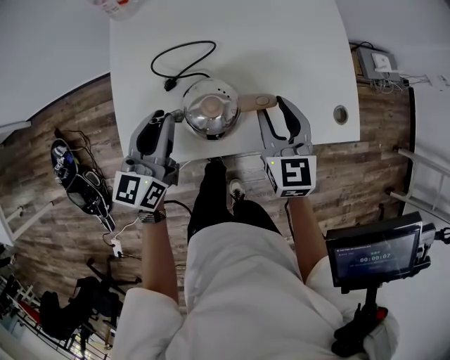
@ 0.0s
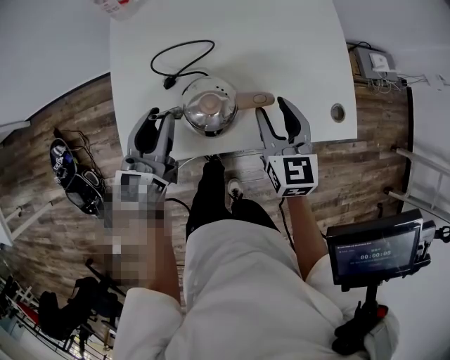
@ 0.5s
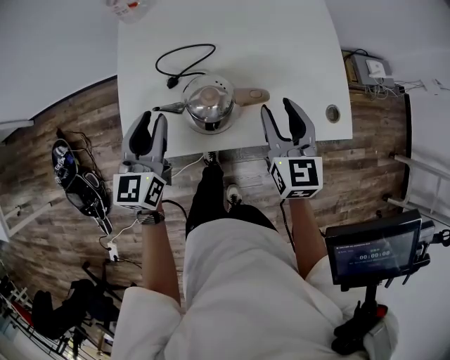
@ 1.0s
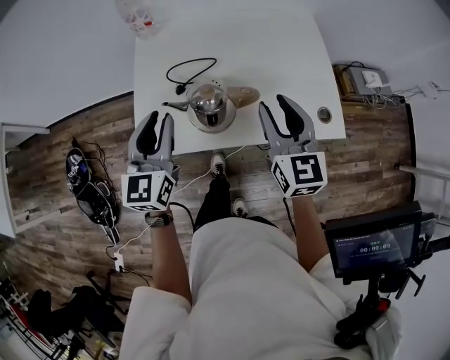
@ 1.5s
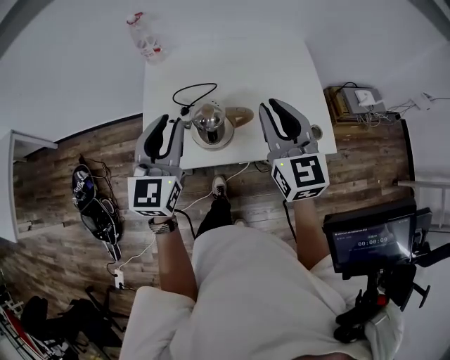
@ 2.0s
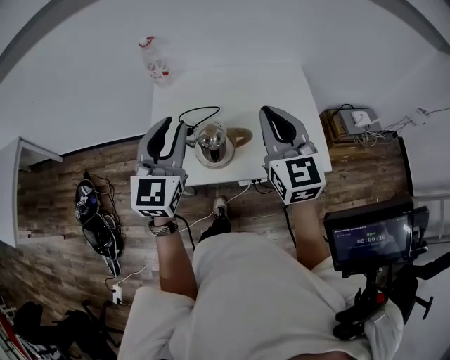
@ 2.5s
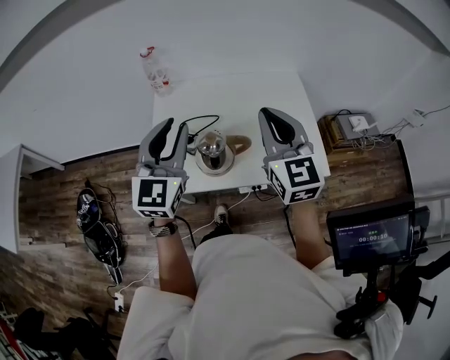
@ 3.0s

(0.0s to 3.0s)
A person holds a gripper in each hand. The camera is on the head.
0.0s - 1.5s: The grippers both shift upward by roughly 10 cm. The left gripper rotates approximately 20 degrees.
1.5s - 3.0s: The grippers both shift upward by some 15 cm. The right gripper closes its fingers.

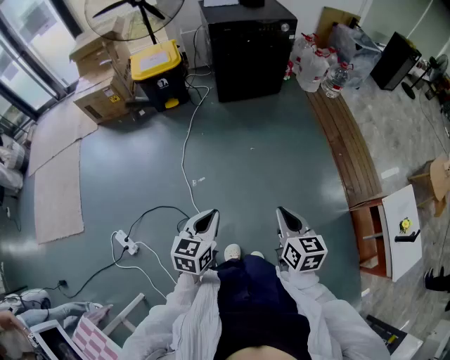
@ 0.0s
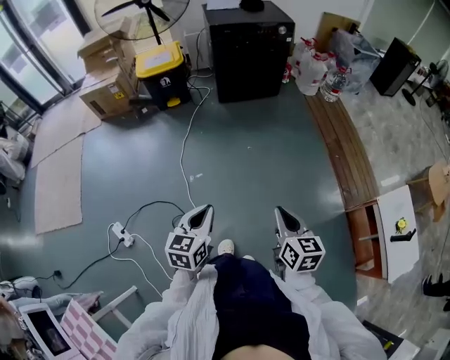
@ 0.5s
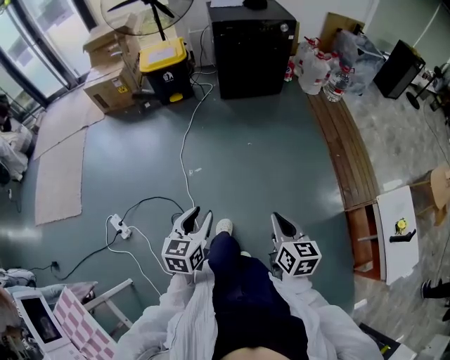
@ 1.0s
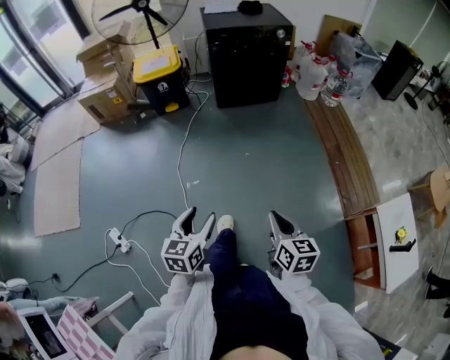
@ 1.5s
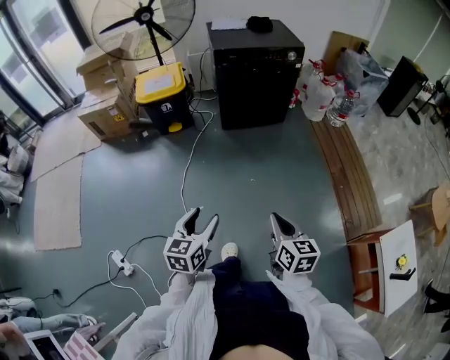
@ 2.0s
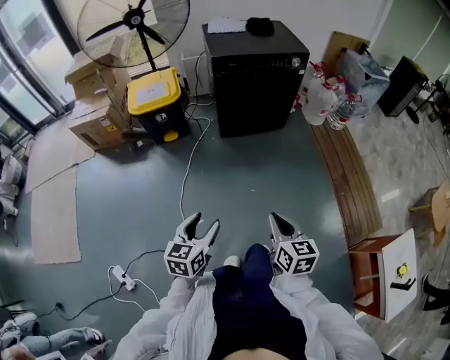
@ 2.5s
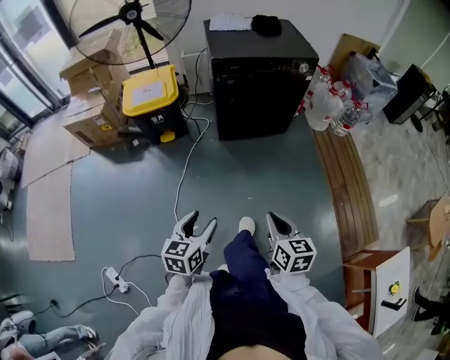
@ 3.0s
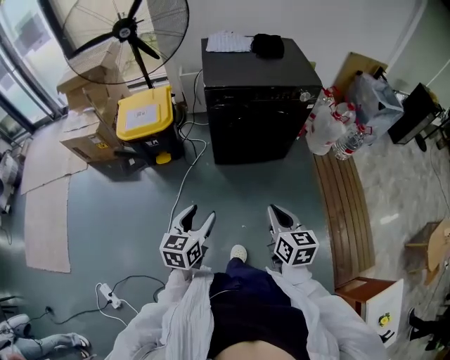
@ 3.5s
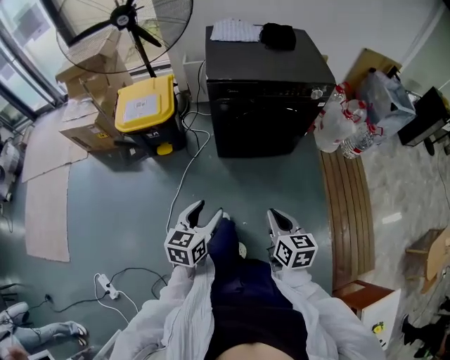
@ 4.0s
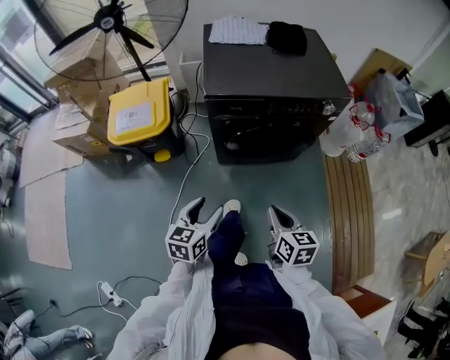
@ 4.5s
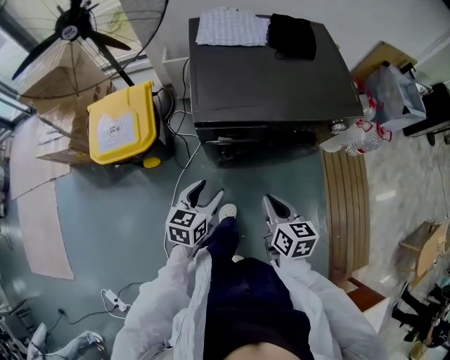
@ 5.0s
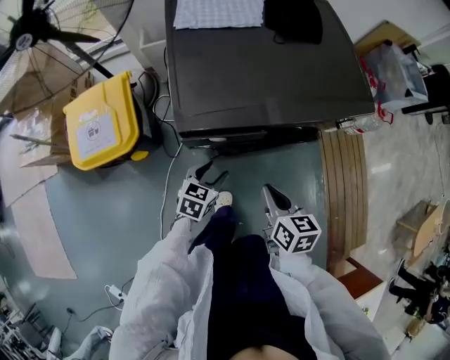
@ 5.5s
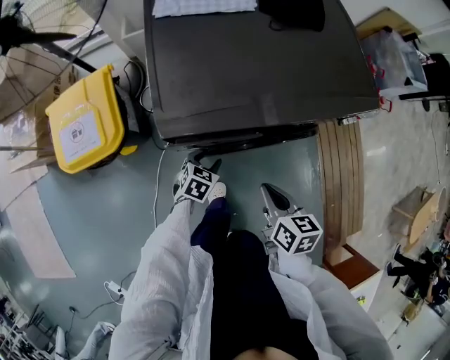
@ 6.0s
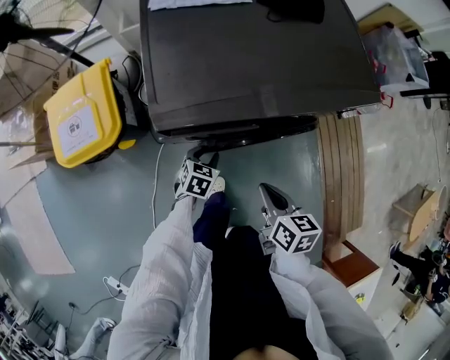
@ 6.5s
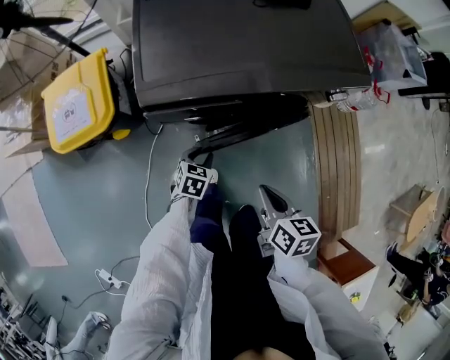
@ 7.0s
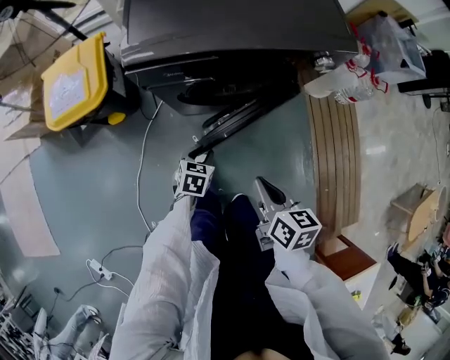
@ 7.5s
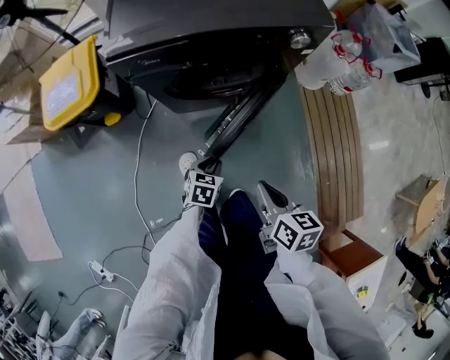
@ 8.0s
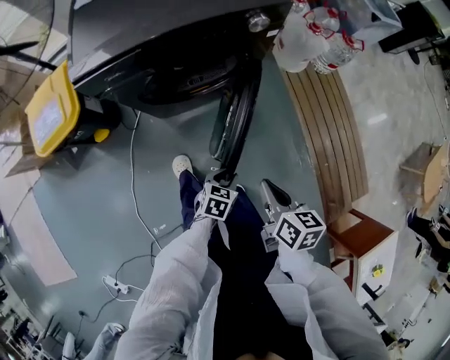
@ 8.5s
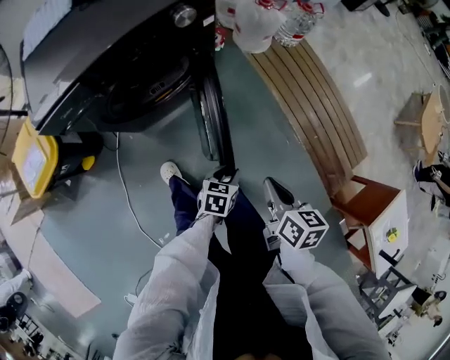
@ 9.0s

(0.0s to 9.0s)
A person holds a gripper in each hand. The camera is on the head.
0.0s - 2.0s: Both grippers move forward, approximately 15 cm. The left gripper opens its fingers.
2.0s - 4.5s: Both grippers are carried forward, some 60 cm.
4.5s - 7.0s: The right gripper heads forward and downward, covering roughly 15 cm, while the left gripper moves forward and downward, approximately 35 cm, rotates some 30 degrees, and closes its fingers.
7.0s - 9.0s: The left gripper moves some 40 cm, and changes its angle by approximately 20 degrees. Meanwhile the right gripper moves roughly 35 cm, and rotates some 30 degrees.

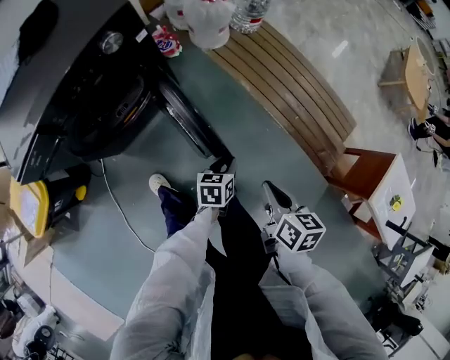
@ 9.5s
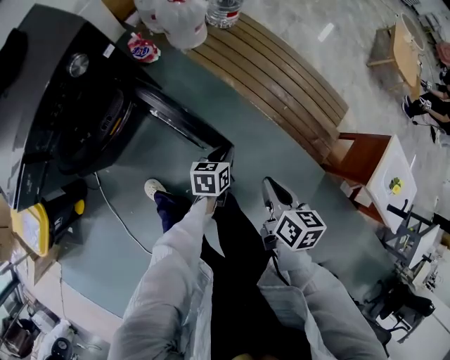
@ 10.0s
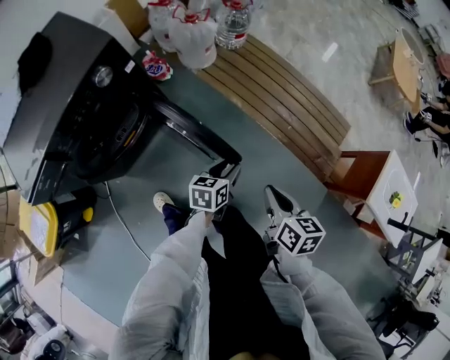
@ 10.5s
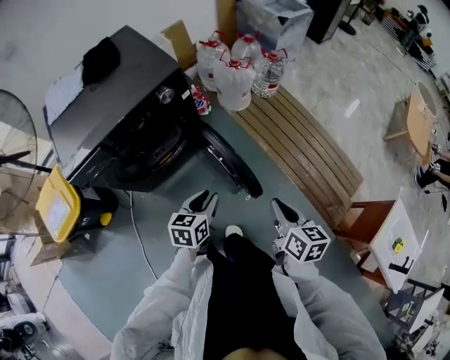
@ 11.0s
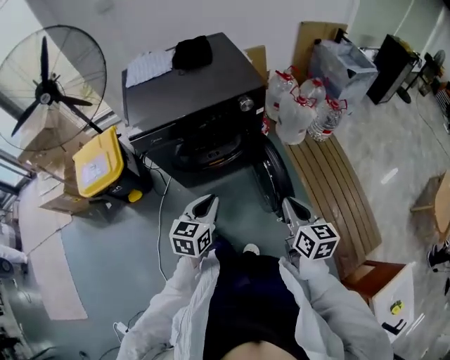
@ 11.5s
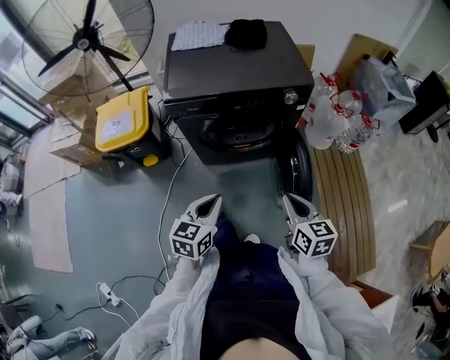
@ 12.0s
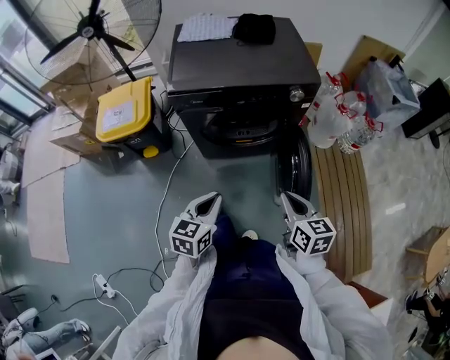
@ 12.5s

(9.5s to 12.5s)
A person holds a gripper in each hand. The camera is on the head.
9.5s - 11.0s: The right gripper heads upward, covering roughly 10 cm, while the left gripper is displaced upward and to the left by approximately 20 cm.
11.0s - 12.5s: The right gripper changes place by some 20 cm, and turns by about 40 degrees; the left gripper changes place by some 25 cm, swivels roughly 30 degrees, and closes.

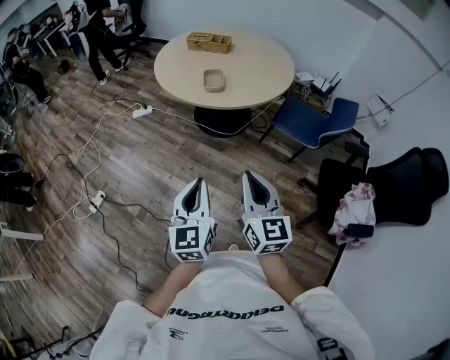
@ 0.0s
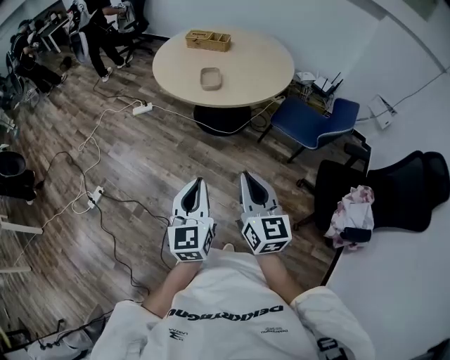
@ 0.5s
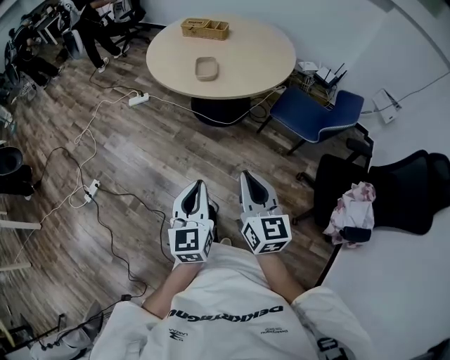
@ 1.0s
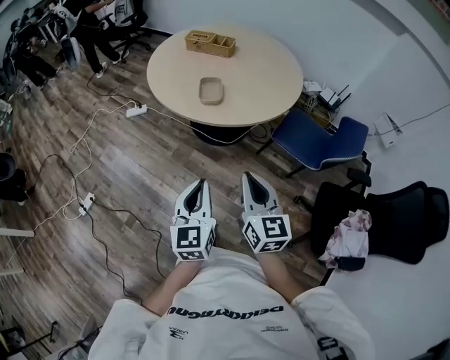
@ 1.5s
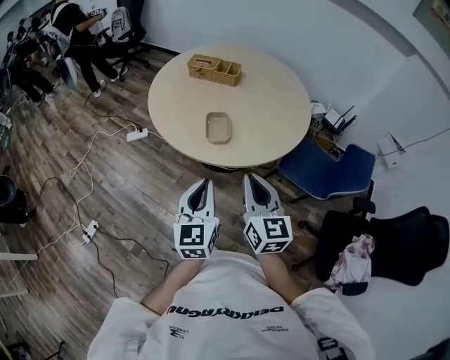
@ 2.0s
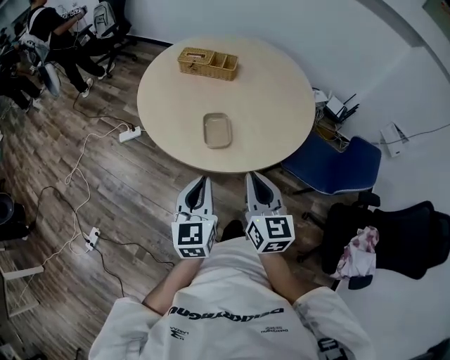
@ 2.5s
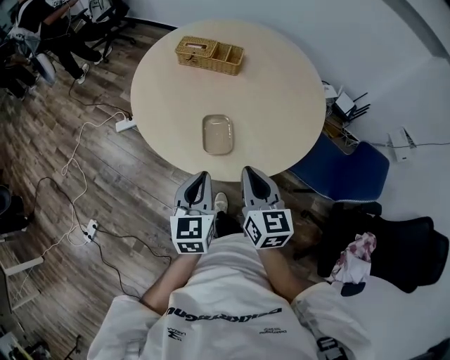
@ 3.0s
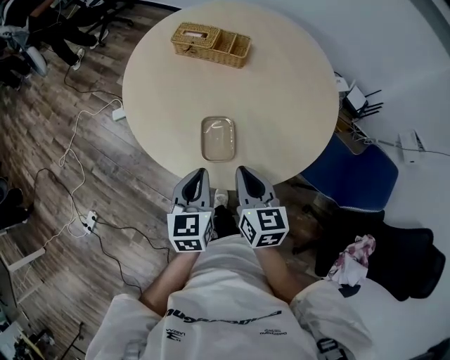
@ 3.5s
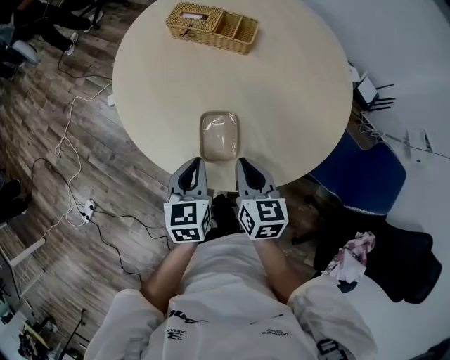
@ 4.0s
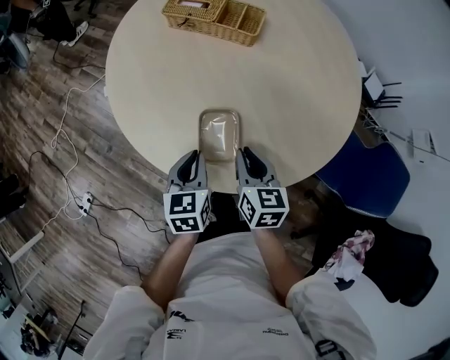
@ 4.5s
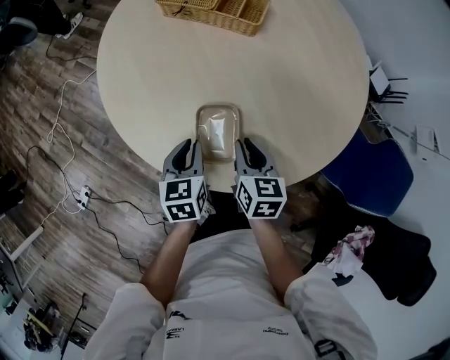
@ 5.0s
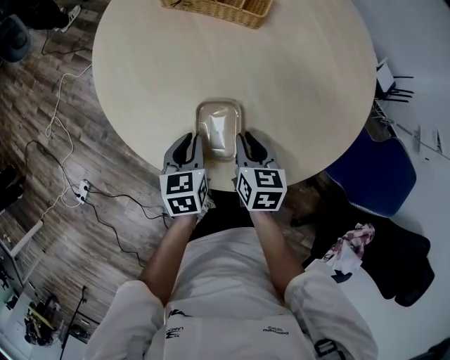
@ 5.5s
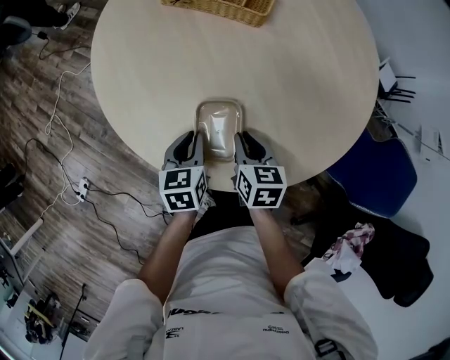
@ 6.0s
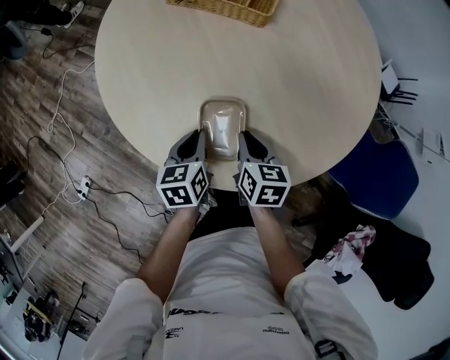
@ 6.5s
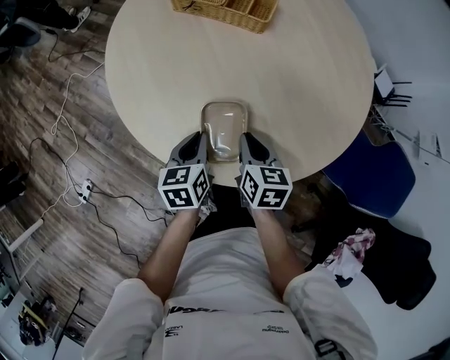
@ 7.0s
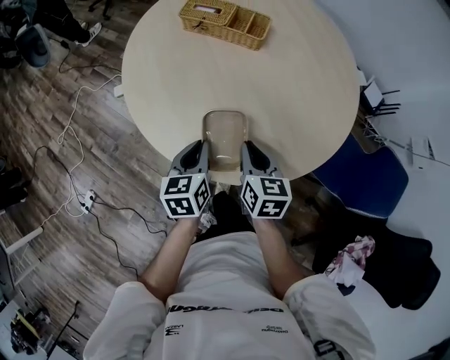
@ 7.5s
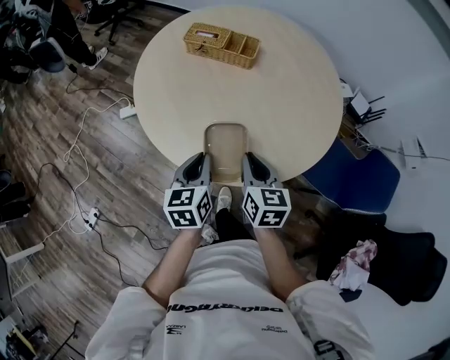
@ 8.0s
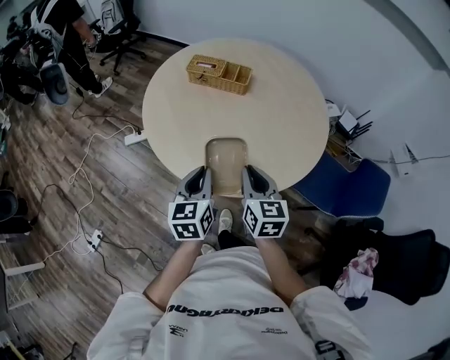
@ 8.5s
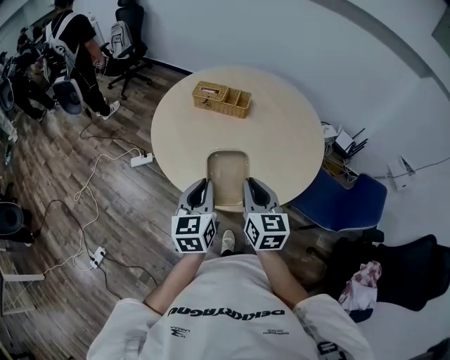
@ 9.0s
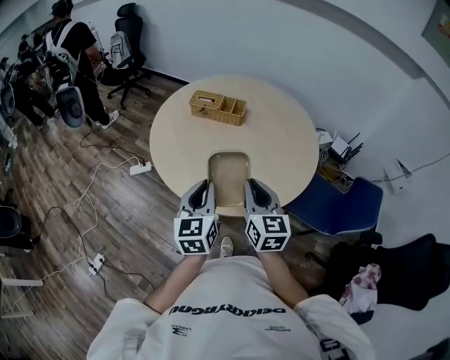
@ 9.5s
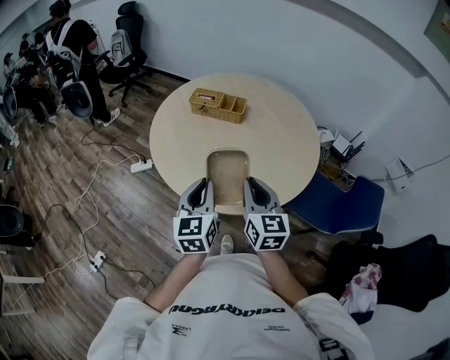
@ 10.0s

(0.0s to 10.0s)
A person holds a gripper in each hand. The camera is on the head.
0.0s - 2.0s: Both grippers travel together forward, approximately 35 cm.
2.0s - 4.0s: Both grippers travel together forward and downward, some 35 cm. The left gripper turns by roughly 30 degrees. Meanwhile the right gripper turns by roughly 30 degrees.
4.0s - 6.0s: The two grippers go approximately 15 cm downward and forward.
6.0s - 8.0s: The grippers both shift upward and backward by about 20 cm.
8.0s - 10.0s: Both grippers move upward and backward, some 15 cm. The left gripper rotates about 20 degrees.

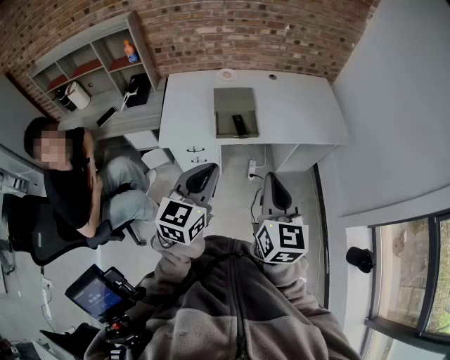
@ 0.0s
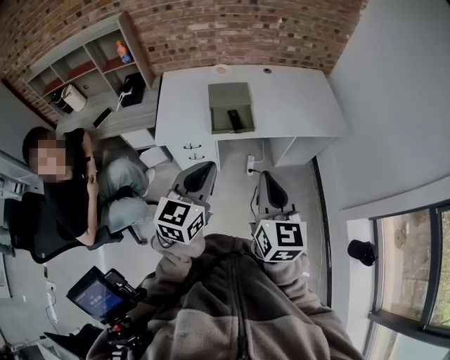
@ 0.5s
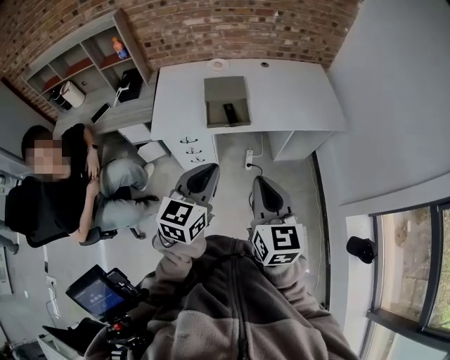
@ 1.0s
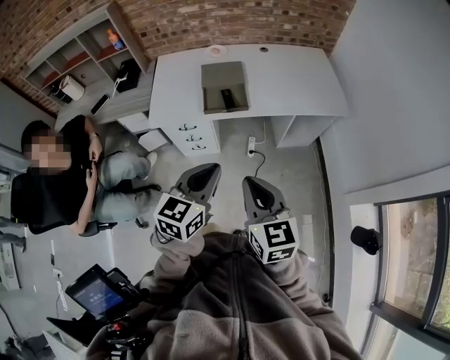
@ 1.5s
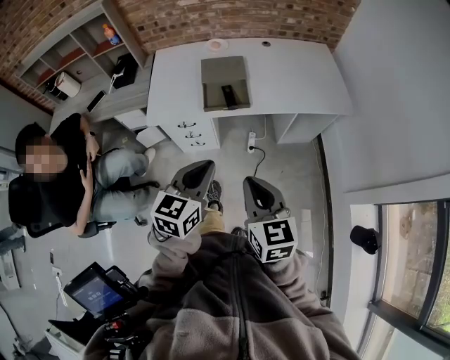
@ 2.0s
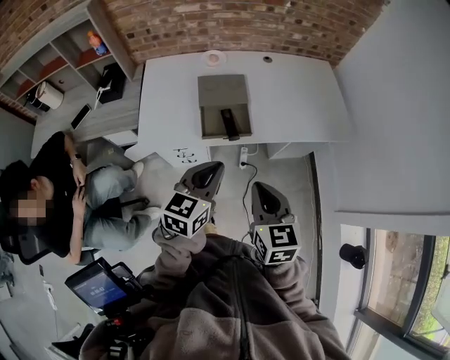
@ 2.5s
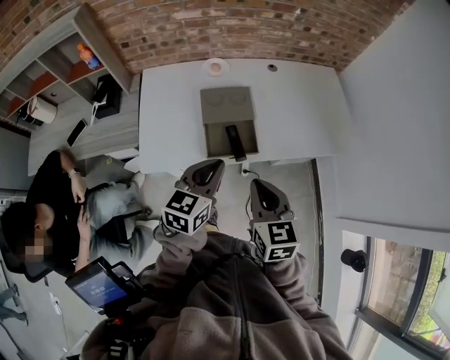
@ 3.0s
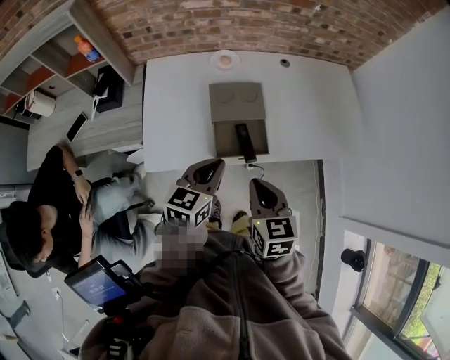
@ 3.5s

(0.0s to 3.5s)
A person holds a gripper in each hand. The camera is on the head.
0.0s - 2.0s: The right gripper is displaced downward by about 10 cm; the left gripper shifts about 10 cm downward and to the right.
2.0s - 3.5s: The two grippers go some 30 cm forward and to the left.
